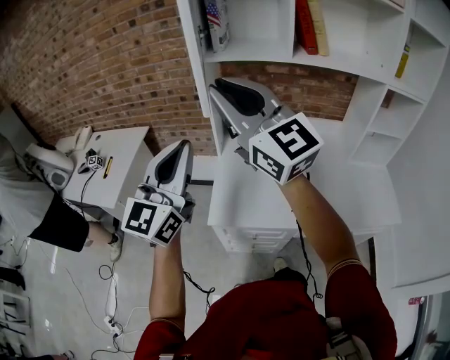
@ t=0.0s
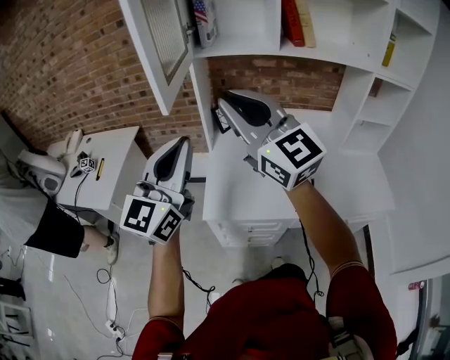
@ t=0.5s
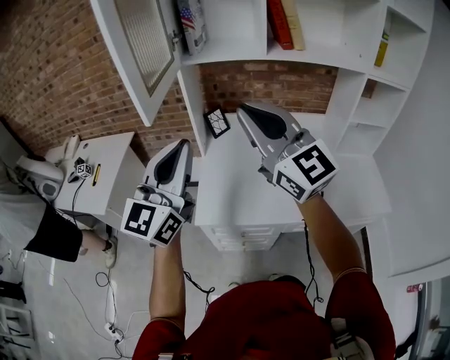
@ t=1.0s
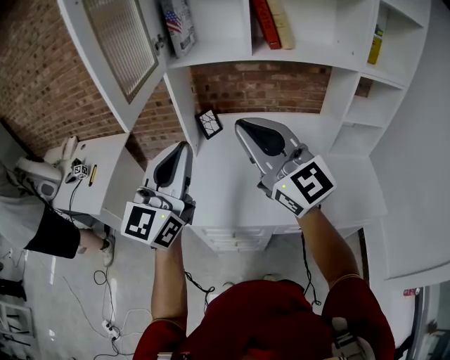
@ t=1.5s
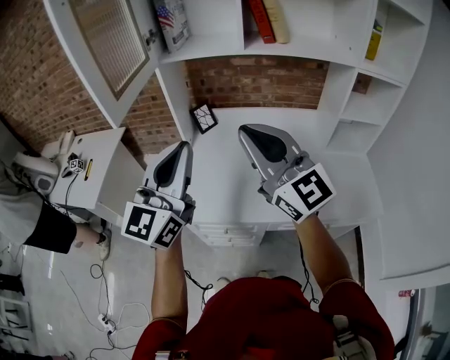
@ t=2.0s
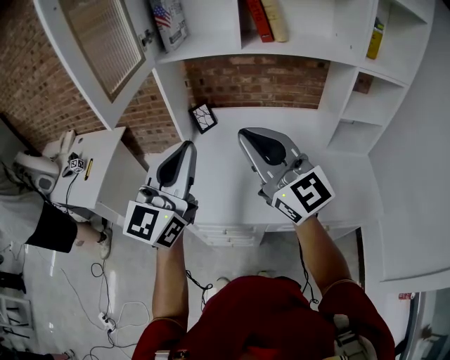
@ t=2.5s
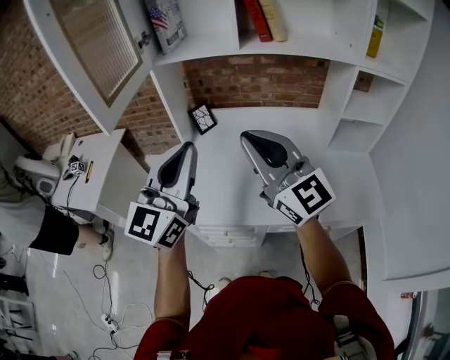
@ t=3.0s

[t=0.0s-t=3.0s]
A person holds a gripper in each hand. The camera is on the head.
t=0.0s to t=1.5s: The left gripper goes roughly 10 cm to the right; the right gripper goes approximately 15 cm to the right, downward and backward.
t=1.5s to t=3.0s: The grippers both shift to the right by about 5 cm.

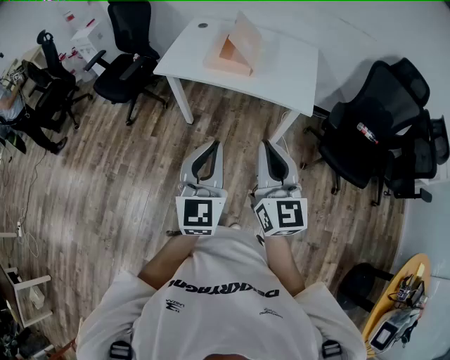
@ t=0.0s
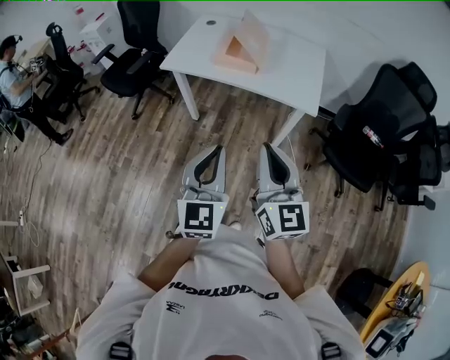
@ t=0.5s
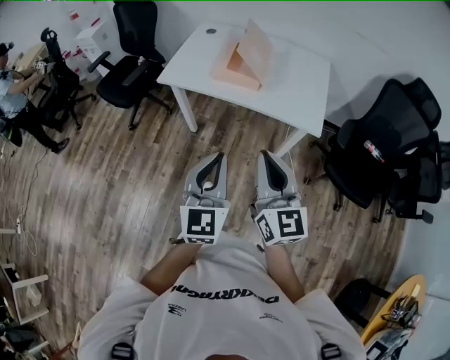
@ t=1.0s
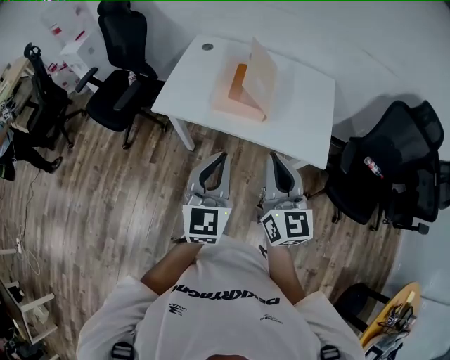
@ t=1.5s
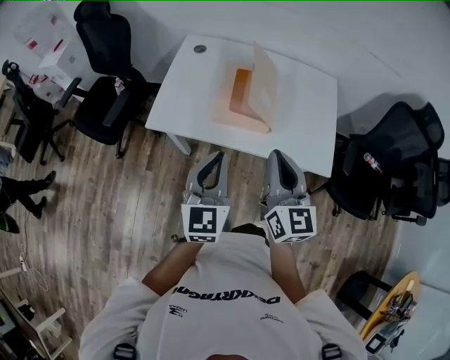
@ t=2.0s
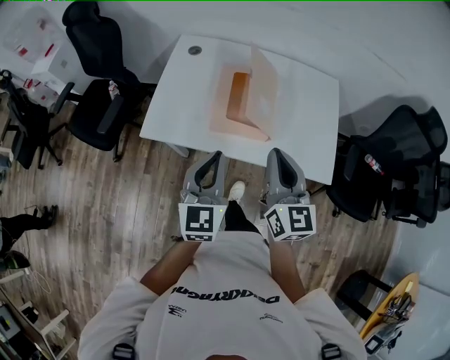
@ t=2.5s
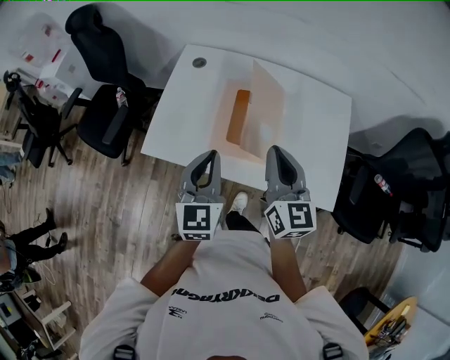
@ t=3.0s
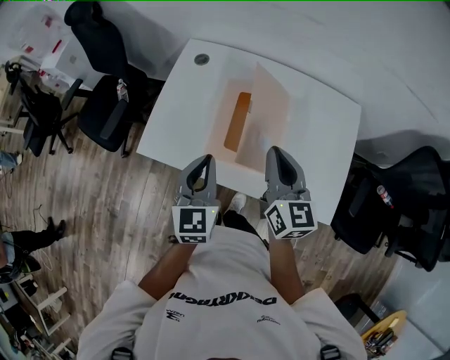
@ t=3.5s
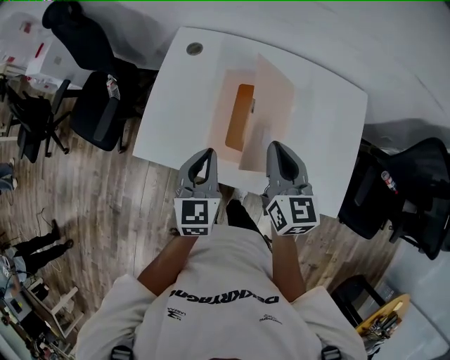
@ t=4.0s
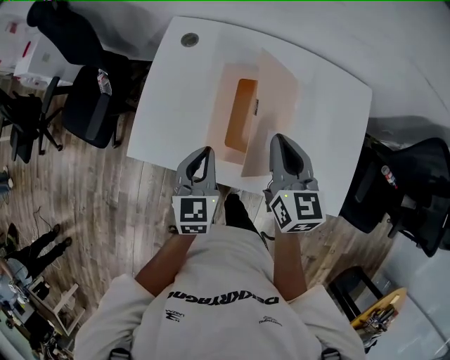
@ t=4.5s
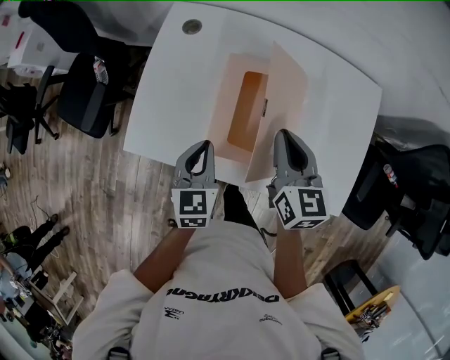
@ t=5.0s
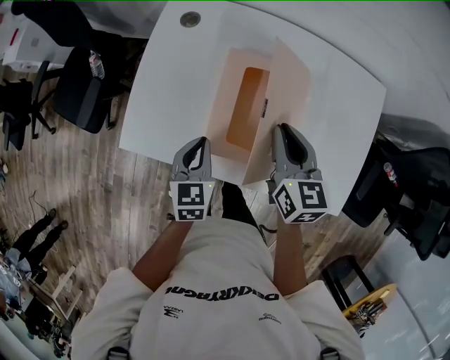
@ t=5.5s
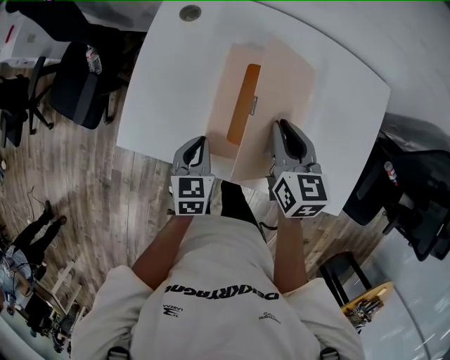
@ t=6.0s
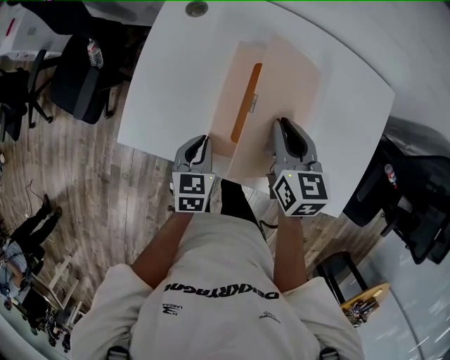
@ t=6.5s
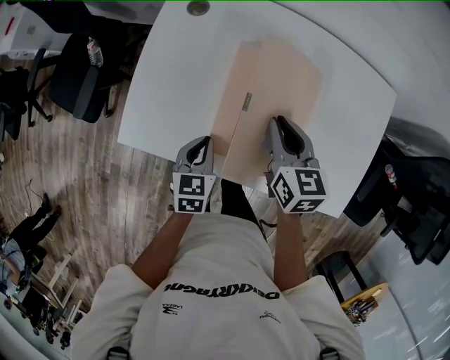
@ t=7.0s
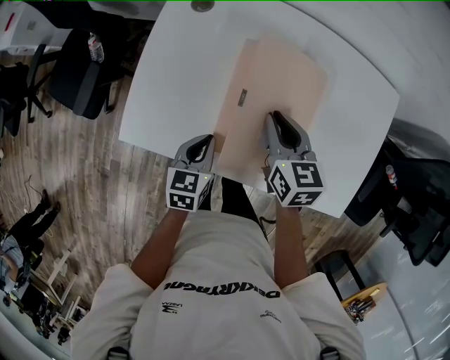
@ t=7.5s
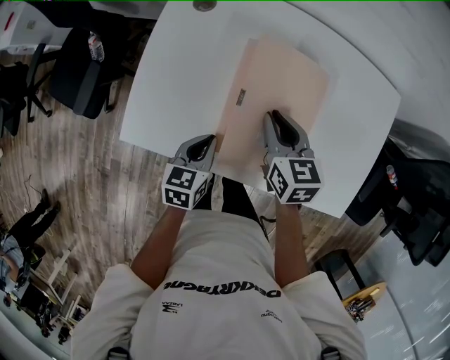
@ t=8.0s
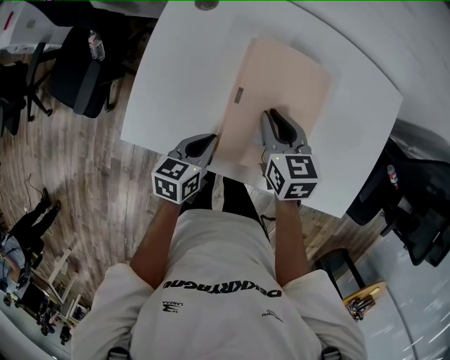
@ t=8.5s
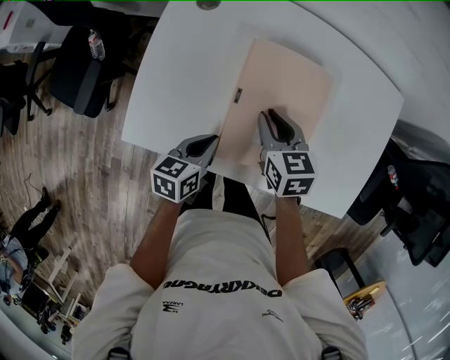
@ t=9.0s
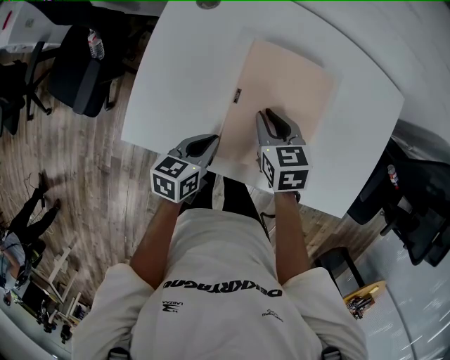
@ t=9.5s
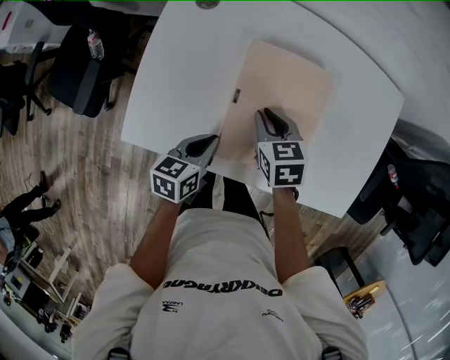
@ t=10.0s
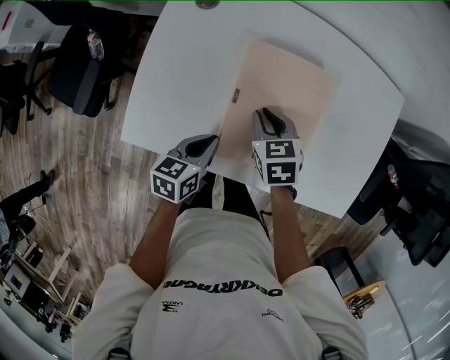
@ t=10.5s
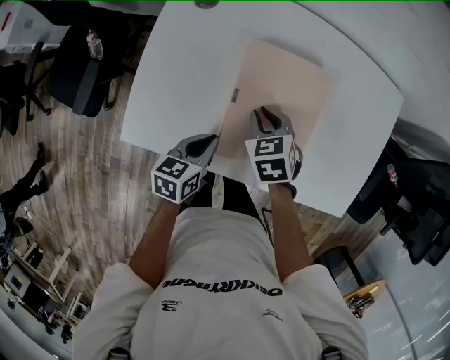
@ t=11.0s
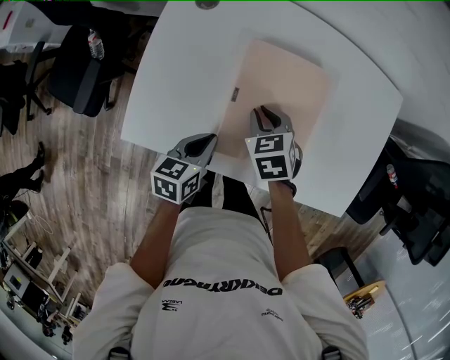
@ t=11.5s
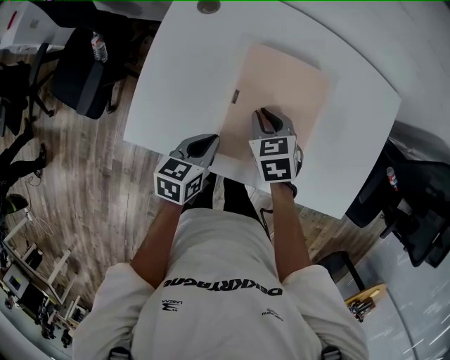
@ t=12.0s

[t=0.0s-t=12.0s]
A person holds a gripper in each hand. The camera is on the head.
t=0.0s to t=2.0s: The two grippers go approximately 35 cm forward.
t=2.0s to t=4.0s: Both grippers travel together forward and downward, approximately 25 cm.
t=4.0s to t=6.0s: The left gripper shifts roughly 15 cm downward, and swivels some 20 degrees, while the right gripper moves downward and forward, about 15 cm.
t=6.0s to t=8.0s: The right gripper shifts some 5 cm to the left.
t=8.0s to t=10.0s: The right gripper is displaced downward by some 5 cm.
t=10.0s to t=12.0s: The grippers make only small movements.

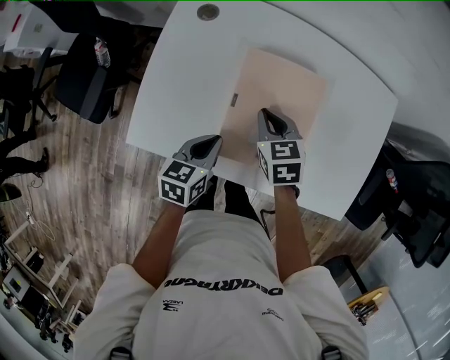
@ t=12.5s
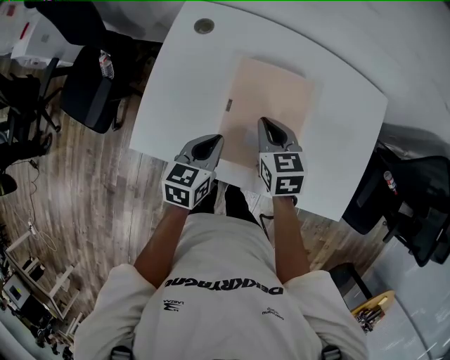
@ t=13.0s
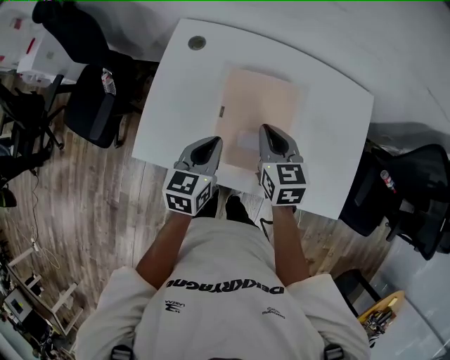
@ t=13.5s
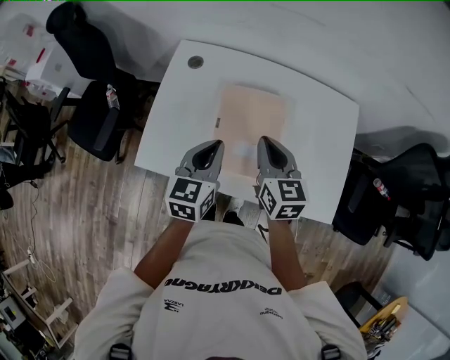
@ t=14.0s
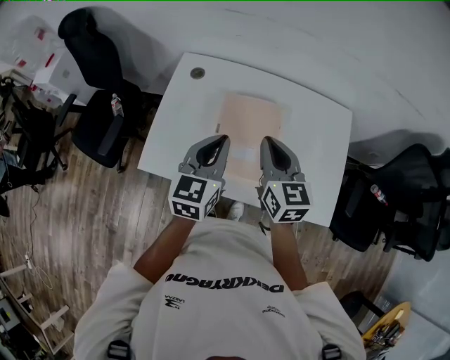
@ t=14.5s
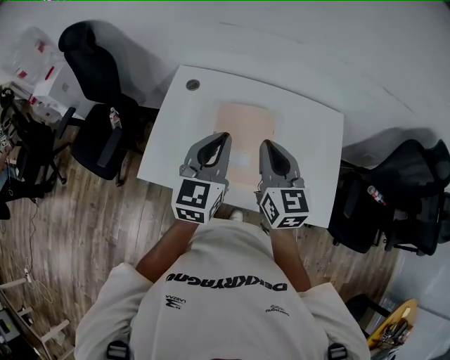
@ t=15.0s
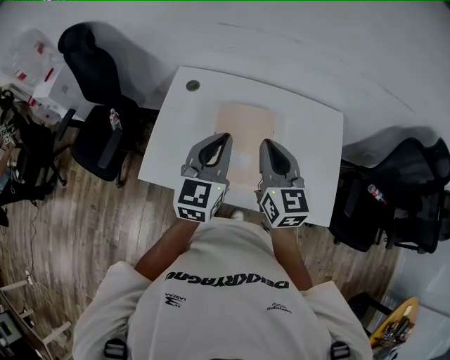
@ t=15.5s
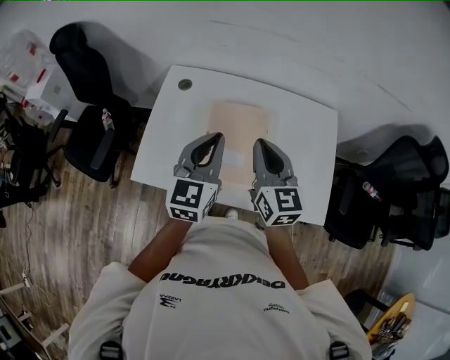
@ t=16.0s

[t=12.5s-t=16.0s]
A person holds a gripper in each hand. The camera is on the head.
t=12.5s to t=14.5s: The two grippers go some 25 cm upward. The left gripper turns by some 30 degrees; the right gripper points its fingers approximately 30 degrees further upward.
t=14.5s to t=16.0s: The grippers stay close to where they were, moving slightly.

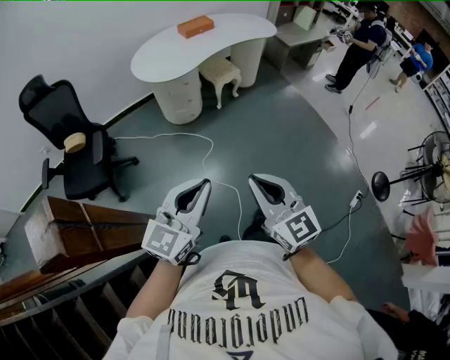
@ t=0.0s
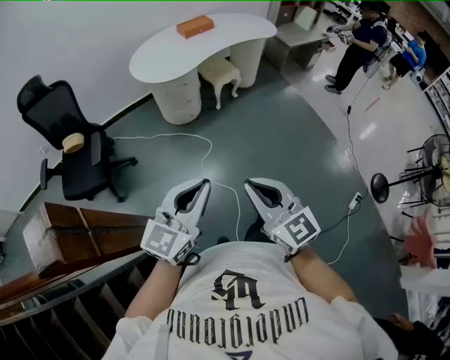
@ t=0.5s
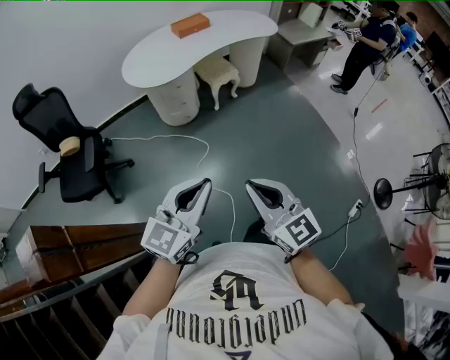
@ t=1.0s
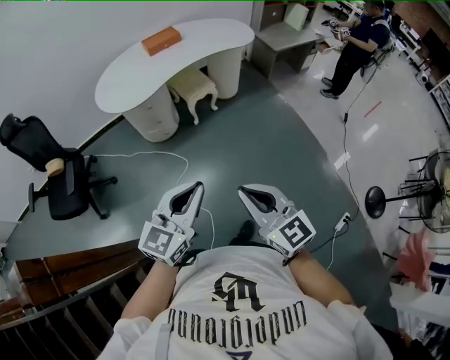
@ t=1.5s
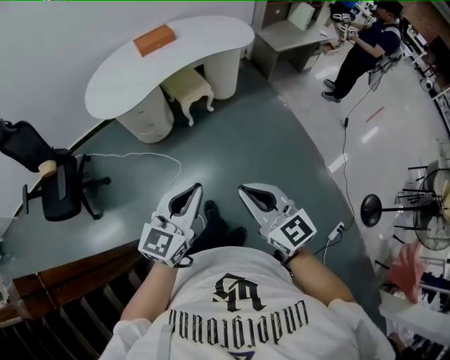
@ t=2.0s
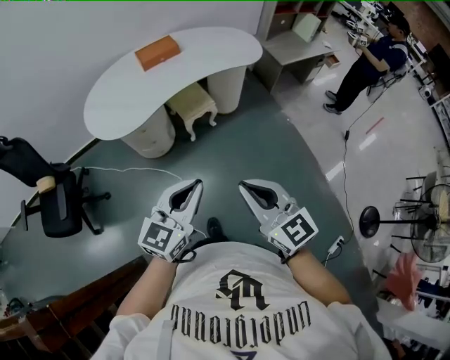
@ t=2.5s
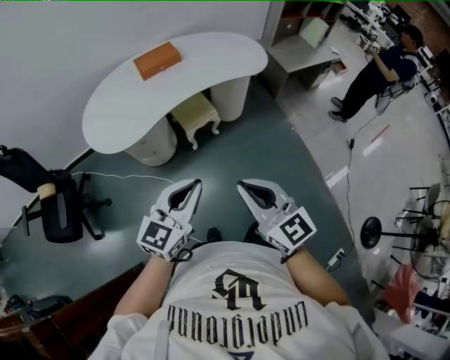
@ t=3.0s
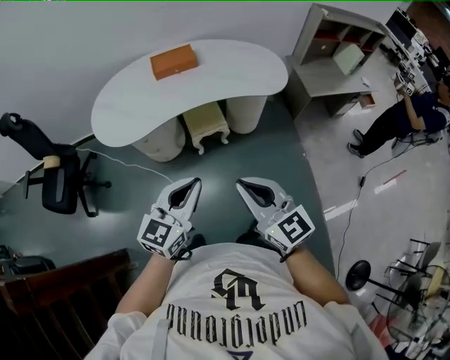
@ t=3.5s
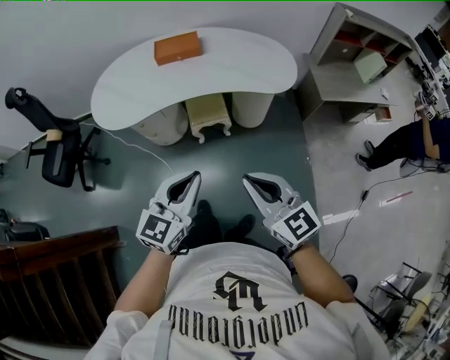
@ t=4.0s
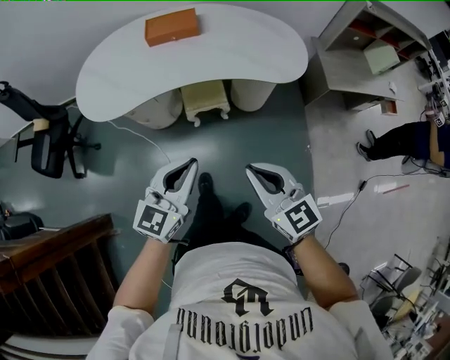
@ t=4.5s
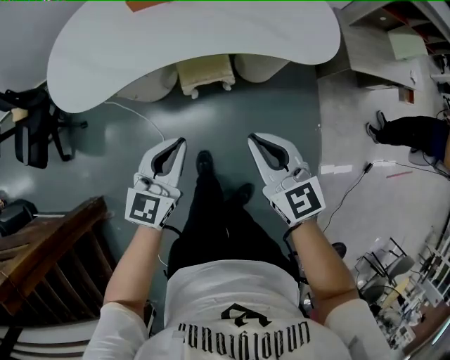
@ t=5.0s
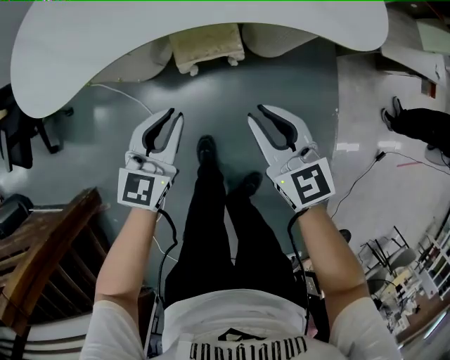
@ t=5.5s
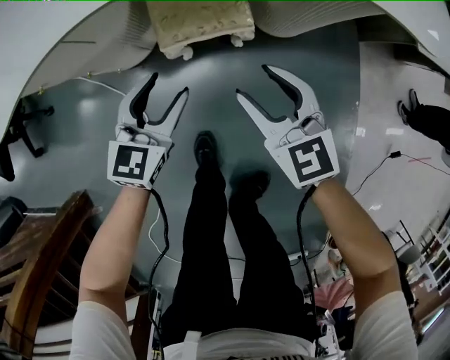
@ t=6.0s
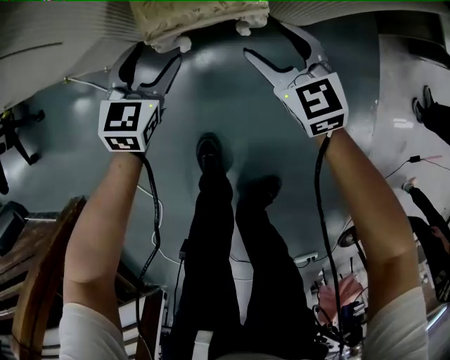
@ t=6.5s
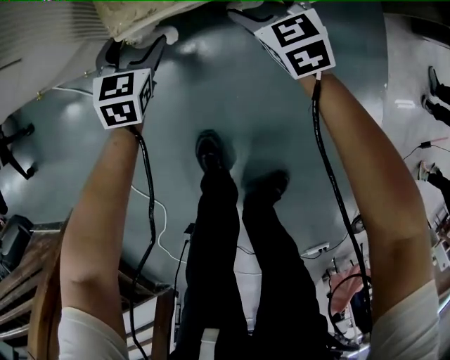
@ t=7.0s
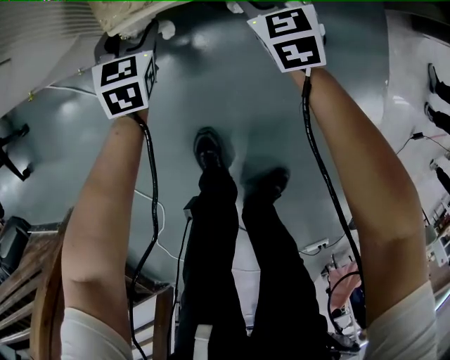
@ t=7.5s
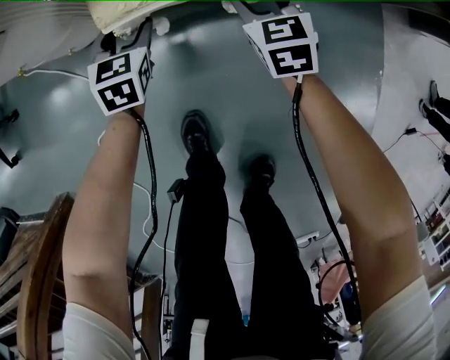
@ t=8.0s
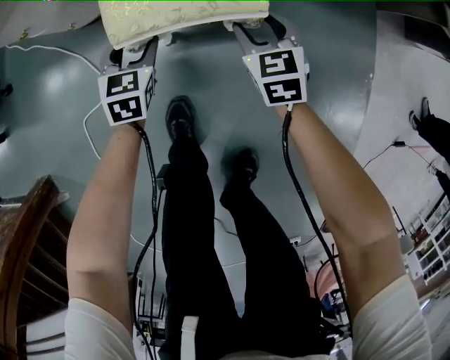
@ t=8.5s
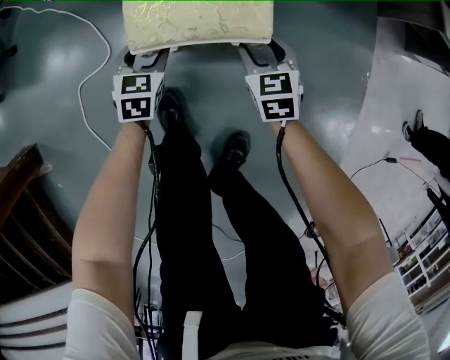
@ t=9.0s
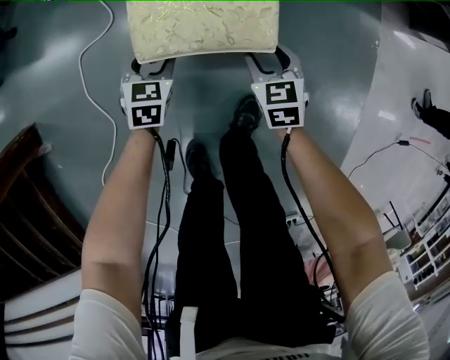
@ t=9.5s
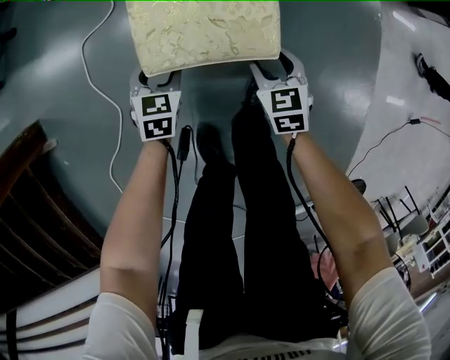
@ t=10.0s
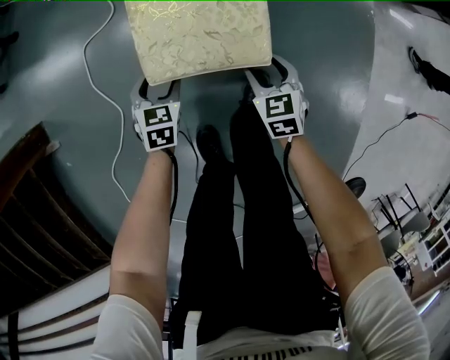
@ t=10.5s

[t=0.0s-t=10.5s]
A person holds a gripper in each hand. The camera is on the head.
t=0.0s to t=2.0s: The two grippers travel together, to the right and forward, approximately 40 cm.
t=2.0s to t=4.0s: Both grippers are carried forward and to the right, some 40 cm. The left gripper swivels some 20 degrees. Meanwhile the right gripper changes its angle by roughly 20 degrees.
t=4.0s to t=6.5s: Both grippers travel together downward and forward, about 80 cm. The left gripper rotates roughly 20 degrees, and opens its fingers, while the right gripper changes its angle by some 30 degrees, and opens up.
t=6.5s to t=8.5s: Both grippers travel together downward and backward, approximately 20 cm.
t=8.5s to t=10.5s: Both grippers are carried backward, roughly 40 cm.
